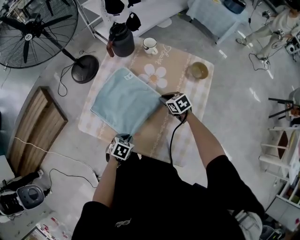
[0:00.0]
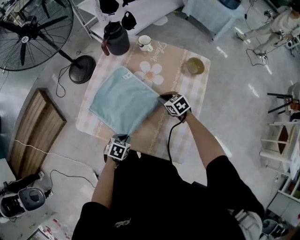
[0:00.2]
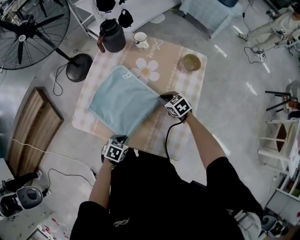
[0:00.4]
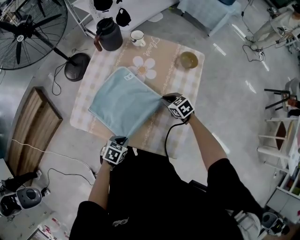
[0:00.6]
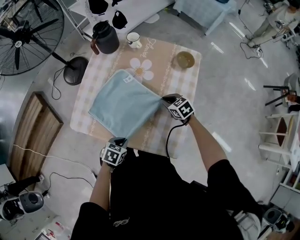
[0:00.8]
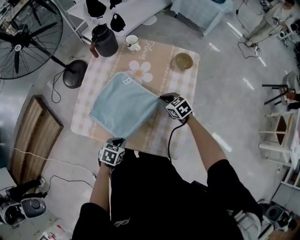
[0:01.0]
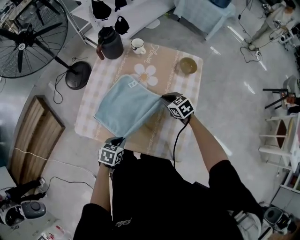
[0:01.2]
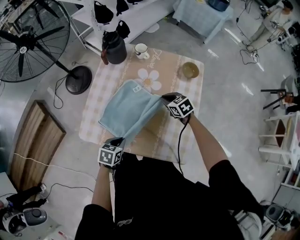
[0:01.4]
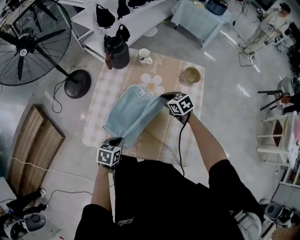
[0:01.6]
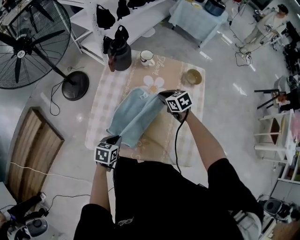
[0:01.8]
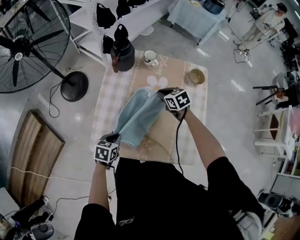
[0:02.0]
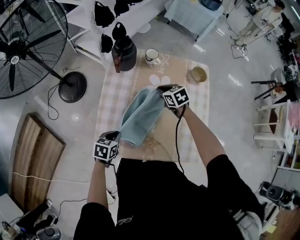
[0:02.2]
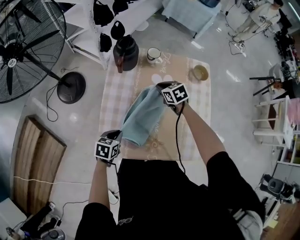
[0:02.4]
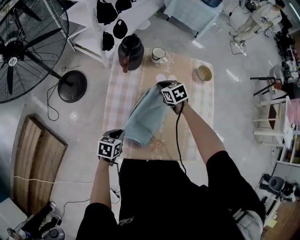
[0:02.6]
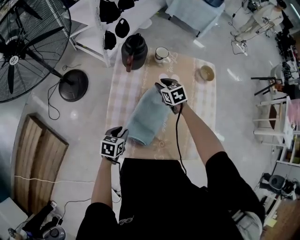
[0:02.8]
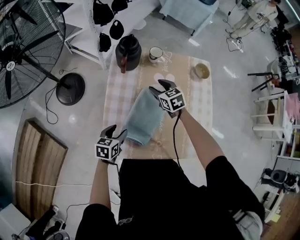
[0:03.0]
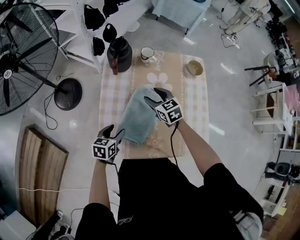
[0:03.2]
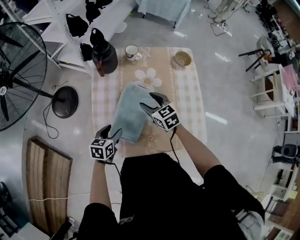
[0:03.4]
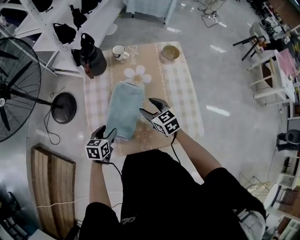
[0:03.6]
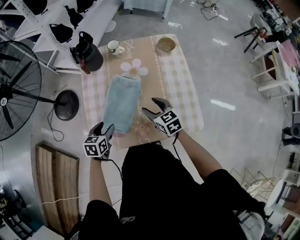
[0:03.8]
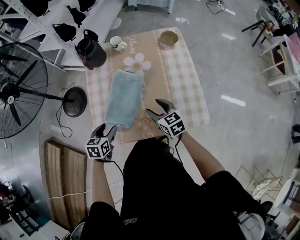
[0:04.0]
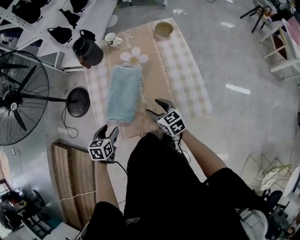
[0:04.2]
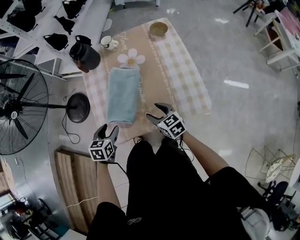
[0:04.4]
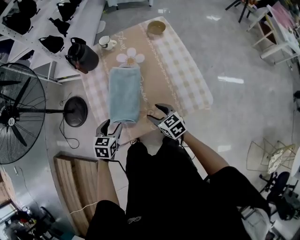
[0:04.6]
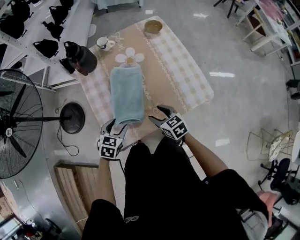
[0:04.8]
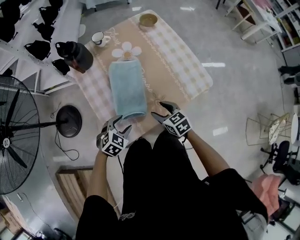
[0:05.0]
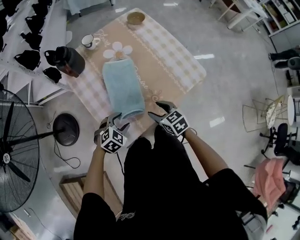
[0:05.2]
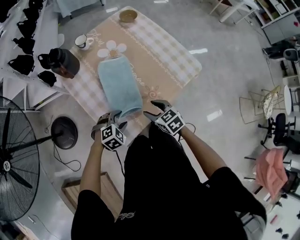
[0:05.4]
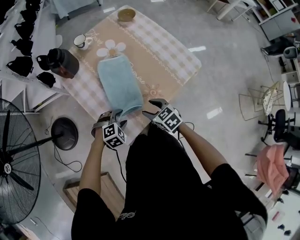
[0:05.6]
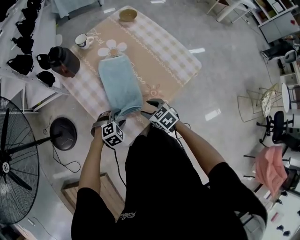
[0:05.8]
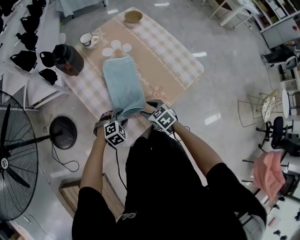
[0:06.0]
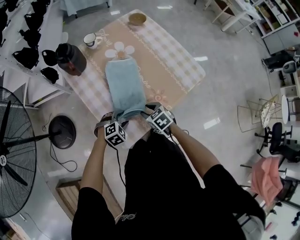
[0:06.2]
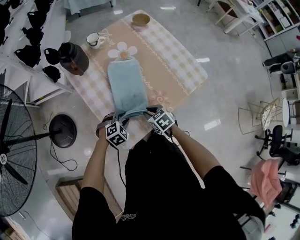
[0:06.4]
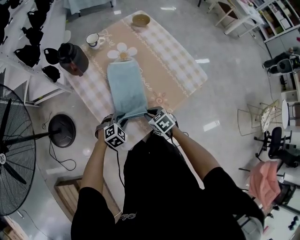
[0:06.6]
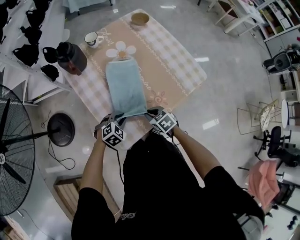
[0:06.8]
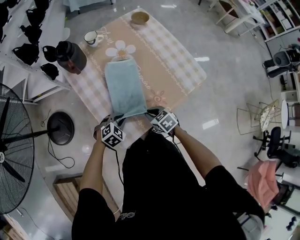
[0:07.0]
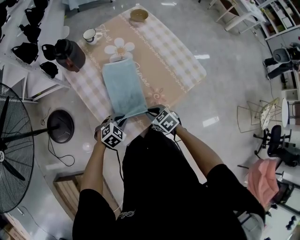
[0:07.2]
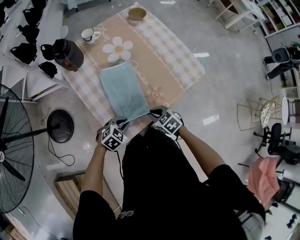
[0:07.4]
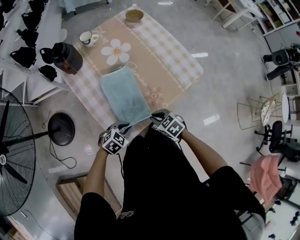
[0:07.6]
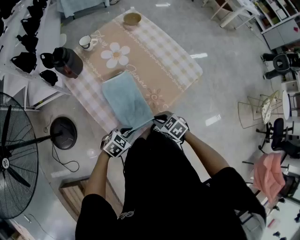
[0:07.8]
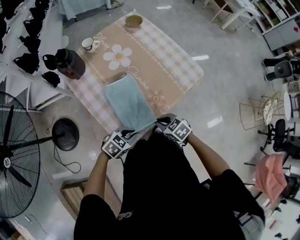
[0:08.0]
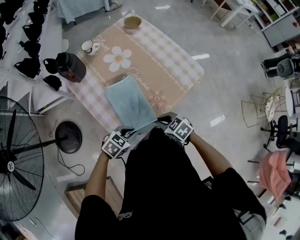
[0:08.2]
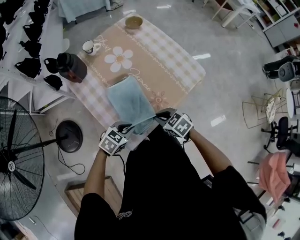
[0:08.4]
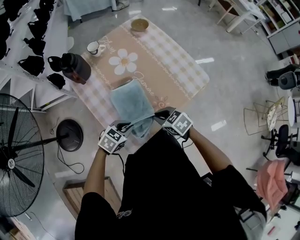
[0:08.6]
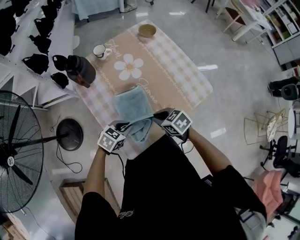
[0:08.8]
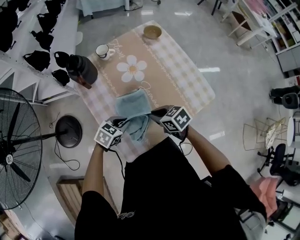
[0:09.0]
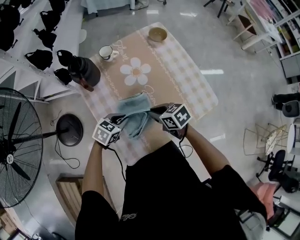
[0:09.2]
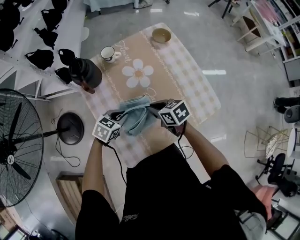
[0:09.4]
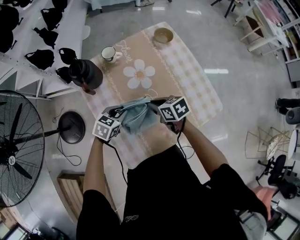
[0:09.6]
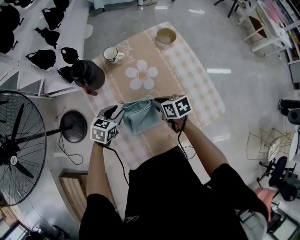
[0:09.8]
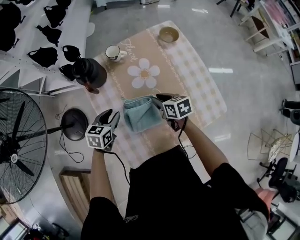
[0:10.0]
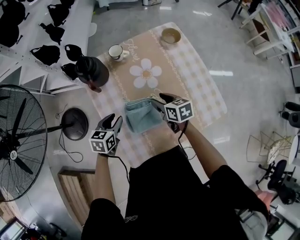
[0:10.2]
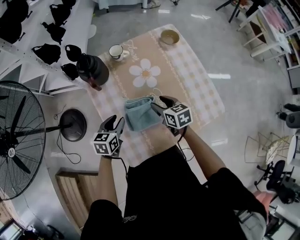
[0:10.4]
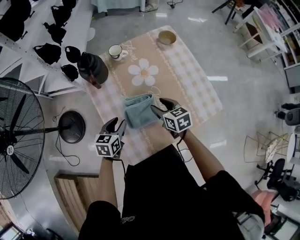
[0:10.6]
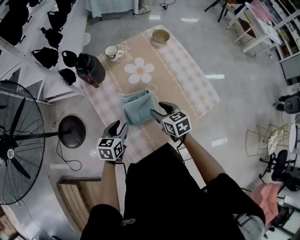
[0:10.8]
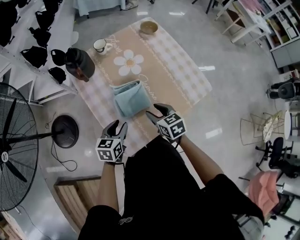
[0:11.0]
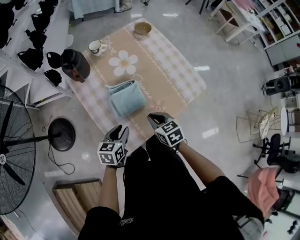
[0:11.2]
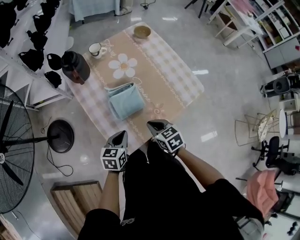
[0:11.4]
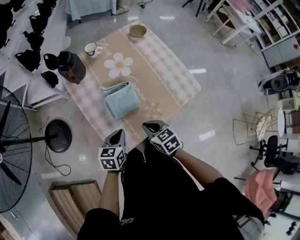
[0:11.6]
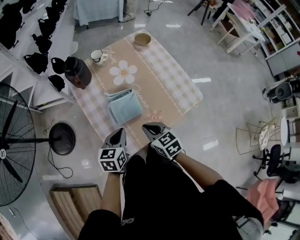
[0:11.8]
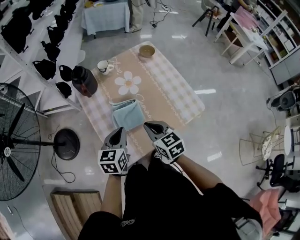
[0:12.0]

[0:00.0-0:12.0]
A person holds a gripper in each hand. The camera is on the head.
0:00.0 to 0:01.6: The right gripper goes roughly 10 cm upward, while the left gripper moves upward and to the left, about 10 cm.
0:01.6 to 0:03.0: The grippers both shift to the left and forward by some 20 cm. The left gripper opens its fingers; the right gripper opens its fingers.
0:03.0 to 0:04.4: The left gripper shifts about 10 cm backward and to the right. Meanwhile the right gripper heads backward, covering approximately 30 cm, and turns by roughly 20 degrees.
0:04.4 to 0:06.0: The right gripper ends up some 15 cm from where it was, and changes its angle by some 30 degrees. The left gripper shifts about 10 cm downward, and rotates around the line of its fingers by roughly 80 degrees, clockwise from behind.
0:06.0 to 0:07.6: The right gripper moves approximately 5 cm, and closes. The left gripper shifts by roughly 5 cm, changes its angle by approximately 30 degrees, and closes.
0:07.6 to 0:09.0: The left gripper moves some 15 cm; the right gripper changes place by roughly 15 cm.
0:09.0 to 0:10.4: The right gripper shifts by roughly 10 cm, and opens. The left gripper shifts by about 10 cm, changes its angle by roughly 40 degrees, and opens.
0:10.4 to 0:12.0: The left gripper travels upward, backward and to the right by roughly 20 cm, and closes. The right gripper is displaced backward and upward by roughly 20 cm, and closes up.

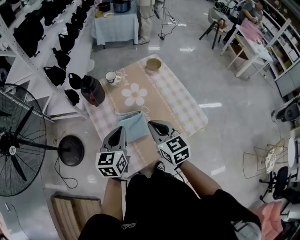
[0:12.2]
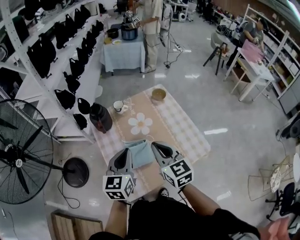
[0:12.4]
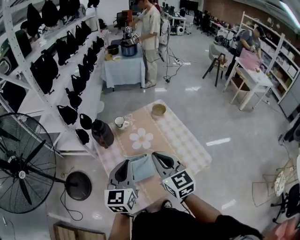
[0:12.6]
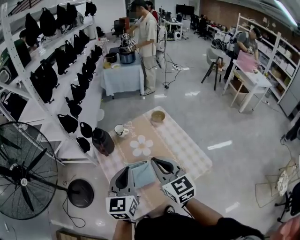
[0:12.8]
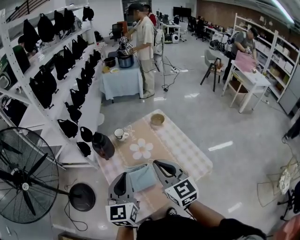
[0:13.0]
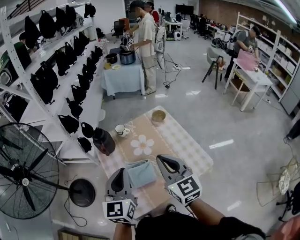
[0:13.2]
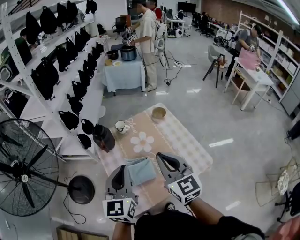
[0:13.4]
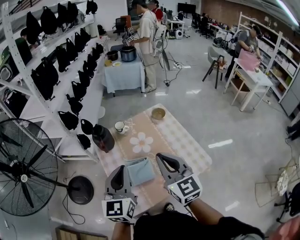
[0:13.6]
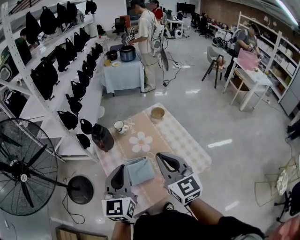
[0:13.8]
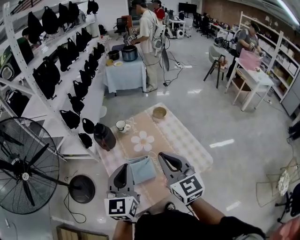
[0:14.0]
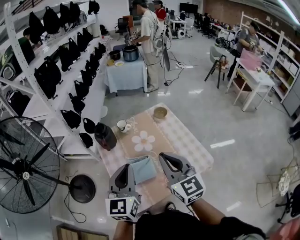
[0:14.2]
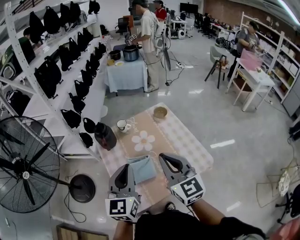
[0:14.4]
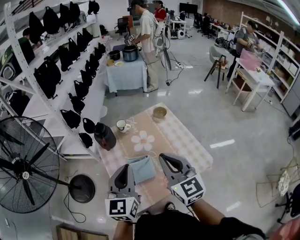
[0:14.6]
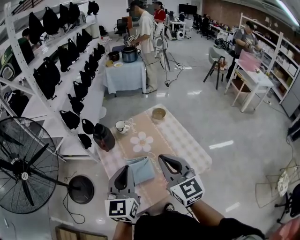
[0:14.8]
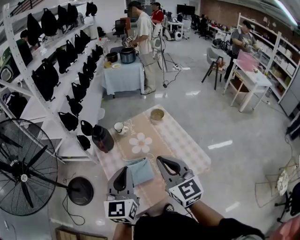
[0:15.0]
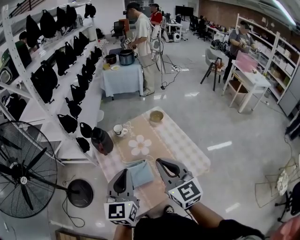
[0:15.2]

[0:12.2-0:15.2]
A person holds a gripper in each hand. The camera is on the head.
0:12.2 to 0:13.8: The grippers both shift upward by approximately 15 cm. The left gripper changes its angle by roughly 20 degrees. The right gripper rotates about 20 degrees.
0:13.8 to 0:15.2: The grippers stay close to where they were, moving slightly.

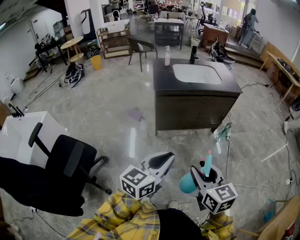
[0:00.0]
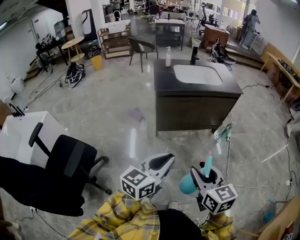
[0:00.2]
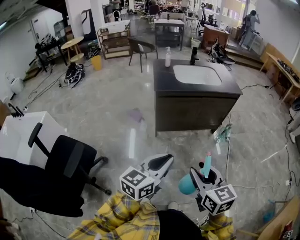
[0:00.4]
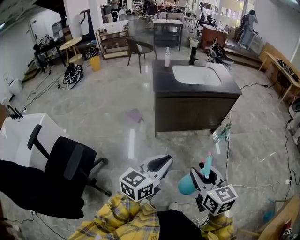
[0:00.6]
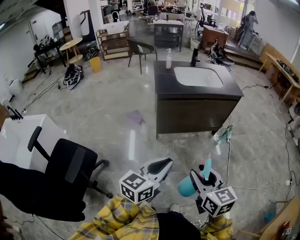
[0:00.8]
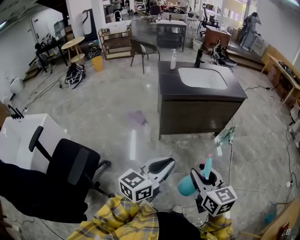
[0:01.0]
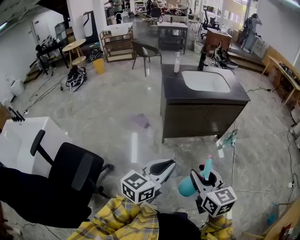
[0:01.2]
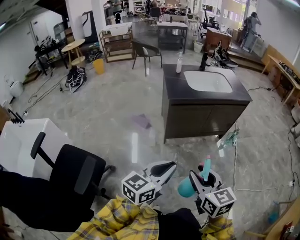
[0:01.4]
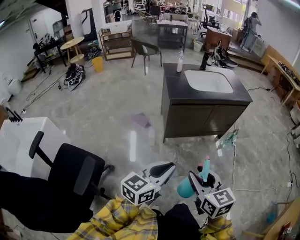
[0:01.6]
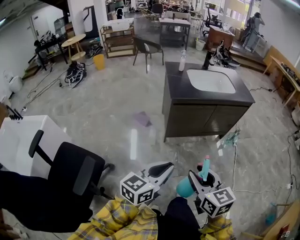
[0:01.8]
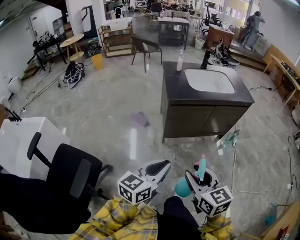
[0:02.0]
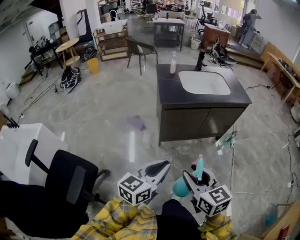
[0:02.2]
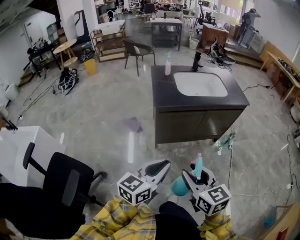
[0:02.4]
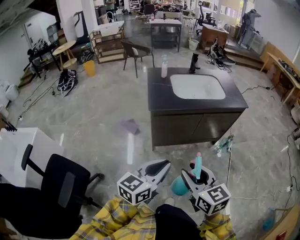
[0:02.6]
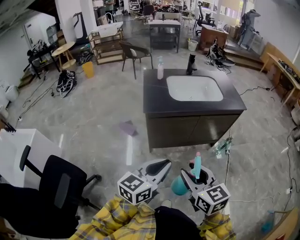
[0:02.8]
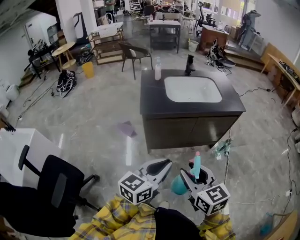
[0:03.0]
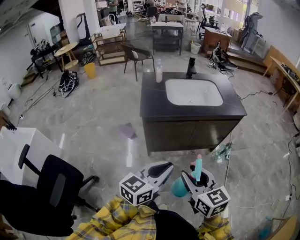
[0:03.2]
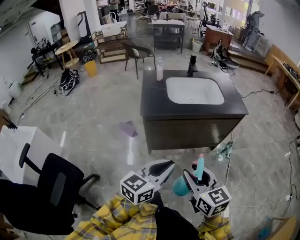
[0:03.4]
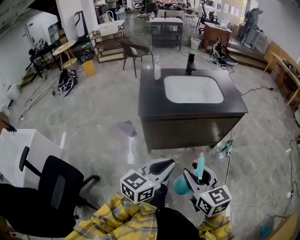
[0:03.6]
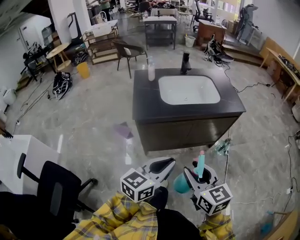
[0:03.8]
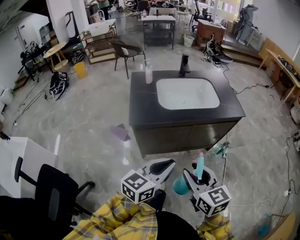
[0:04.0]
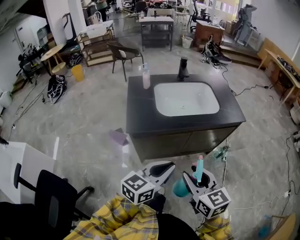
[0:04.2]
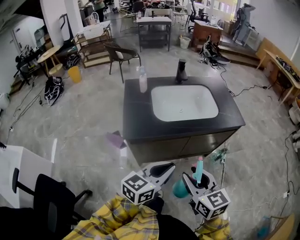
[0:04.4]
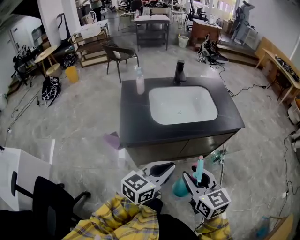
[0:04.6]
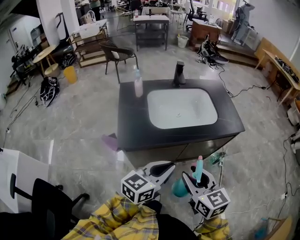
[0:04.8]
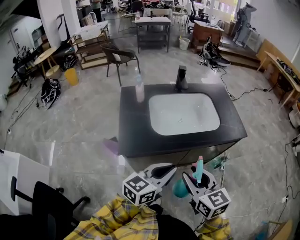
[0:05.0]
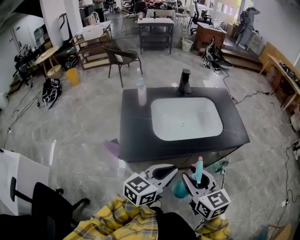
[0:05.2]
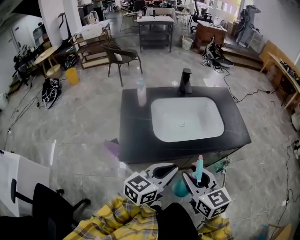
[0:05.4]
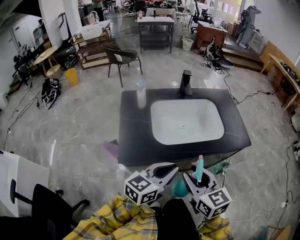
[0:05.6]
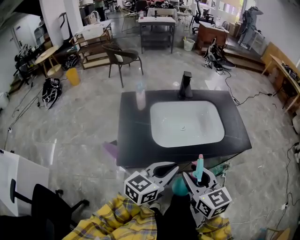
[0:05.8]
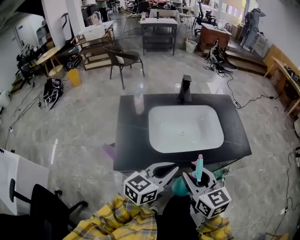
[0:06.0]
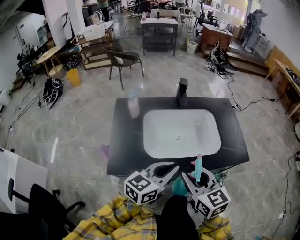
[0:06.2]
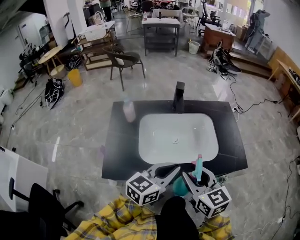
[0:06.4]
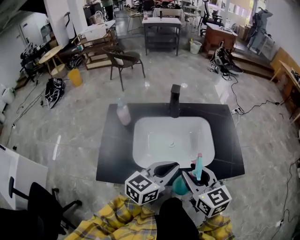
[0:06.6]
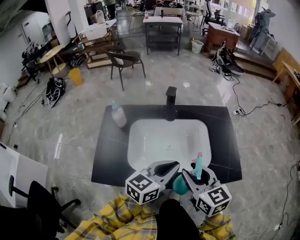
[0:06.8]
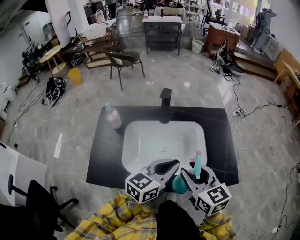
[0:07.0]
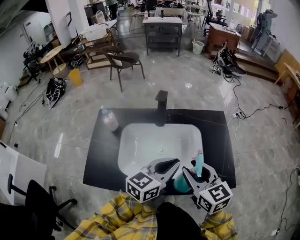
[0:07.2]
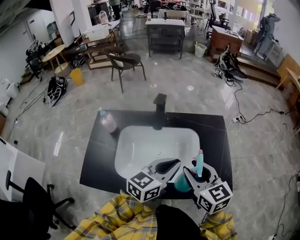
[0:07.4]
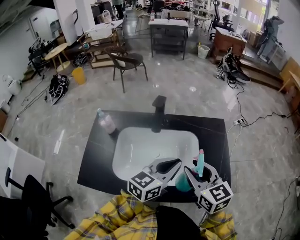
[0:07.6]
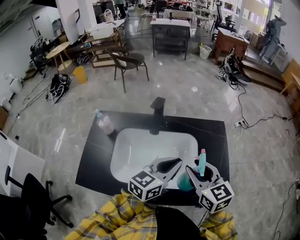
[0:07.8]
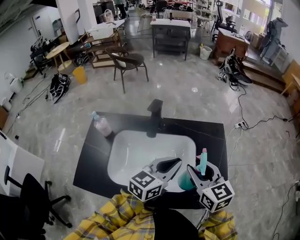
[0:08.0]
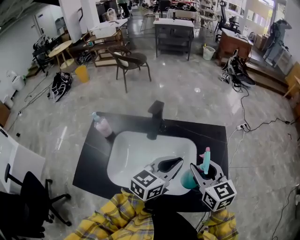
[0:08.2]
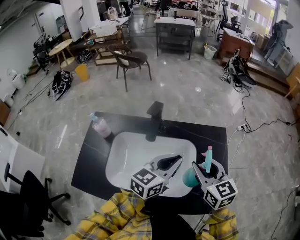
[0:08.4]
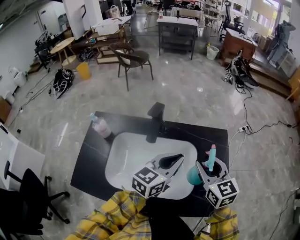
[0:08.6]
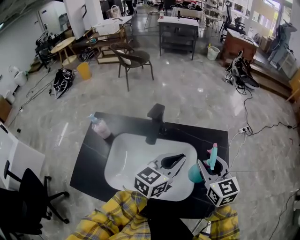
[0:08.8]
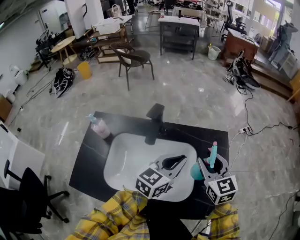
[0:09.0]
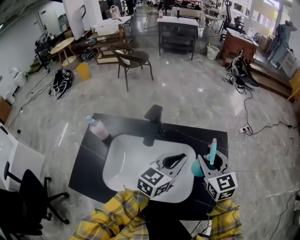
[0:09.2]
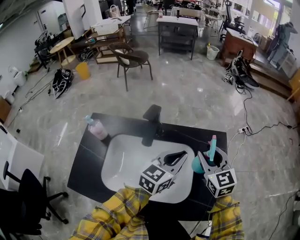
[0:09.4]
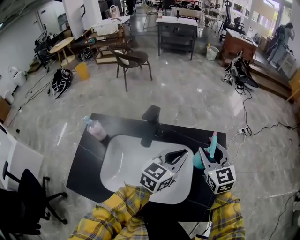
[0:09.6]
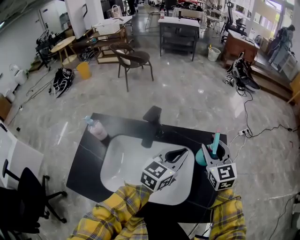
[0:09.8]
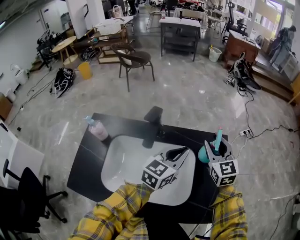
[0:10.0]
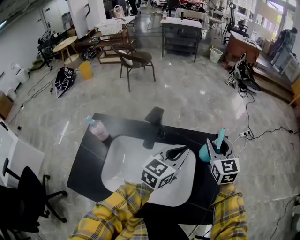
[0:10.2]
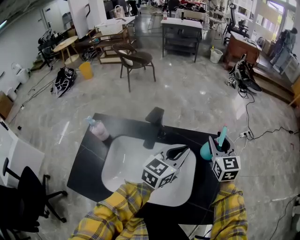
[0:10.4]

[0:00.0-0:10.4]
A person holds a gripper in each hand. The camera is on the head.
0:00.0 to 0:01.4: The two grippers go some 15 cm to the left.
0:01.4 to 0:03.0: The two grippers go roughly 25 cm forward and to the right.
0:03.0 to 0:04.4: The grippers both shift forward by roughly 20 cm.
0:04.4 to 0:06.0: Both grippers move forward, approximately 25 cm.
0:06.0 to 0:07.4: Both grippers travel together forward and to the right, some 30 cm.
0:07.4 to 0:09.0: The left gripper shifts approximately 15 cm forward, while the right gripper heads forward and to the right, covering about 20 cm.
0:09.0 to 0:10.4: The left gripper travels forward by about 5 cm. Meanwhile the right gripper moves forward, roughly 15 cm.
